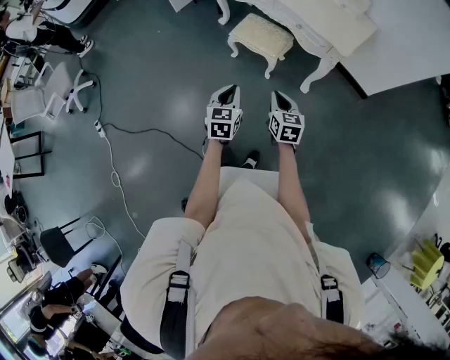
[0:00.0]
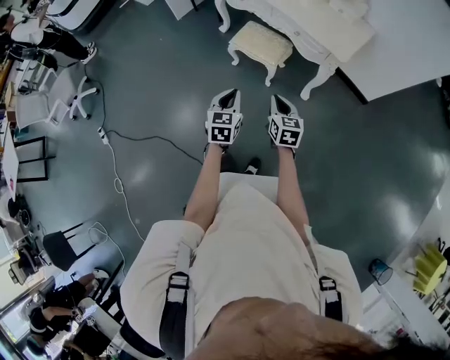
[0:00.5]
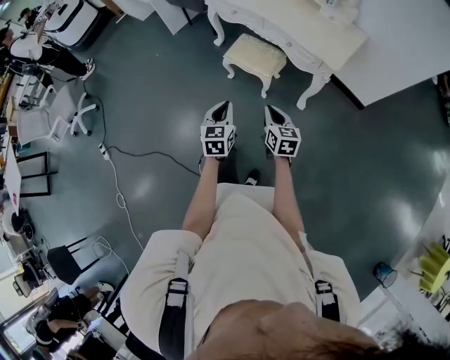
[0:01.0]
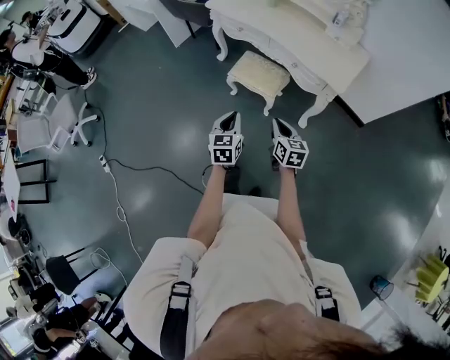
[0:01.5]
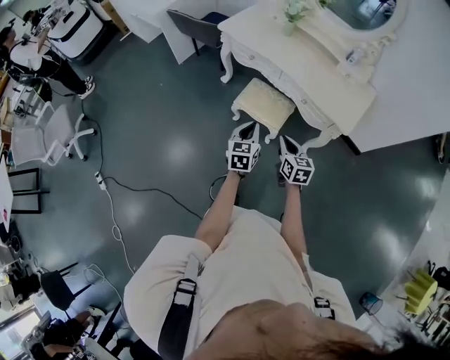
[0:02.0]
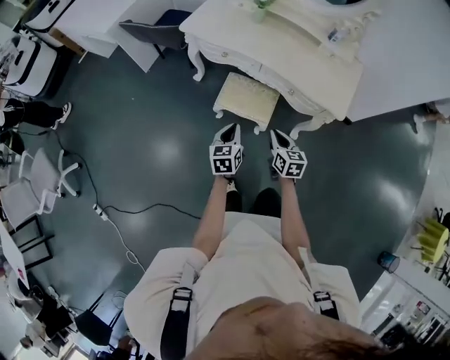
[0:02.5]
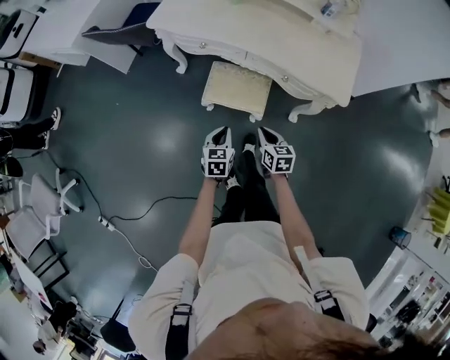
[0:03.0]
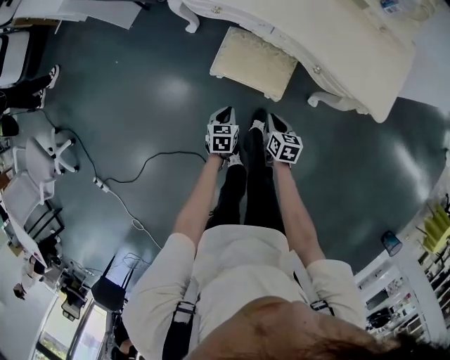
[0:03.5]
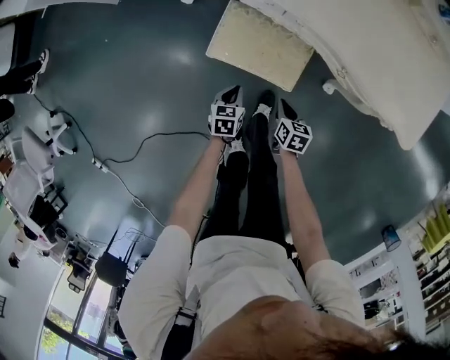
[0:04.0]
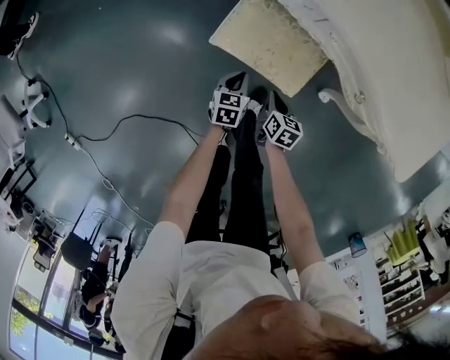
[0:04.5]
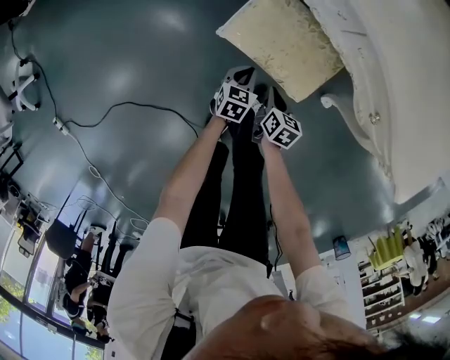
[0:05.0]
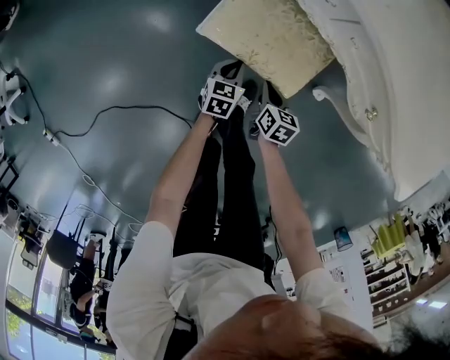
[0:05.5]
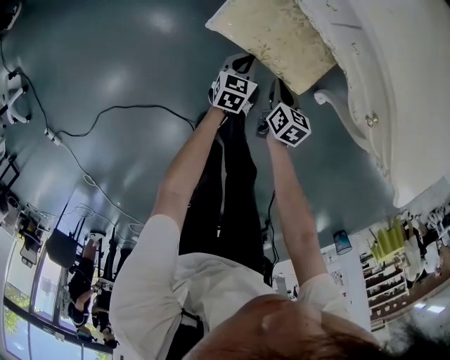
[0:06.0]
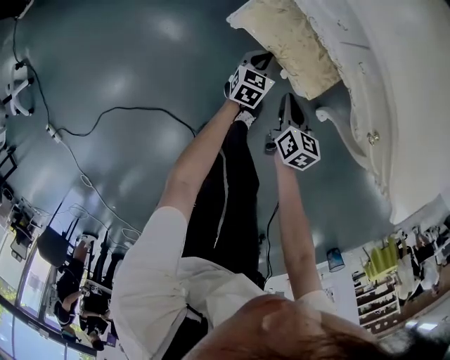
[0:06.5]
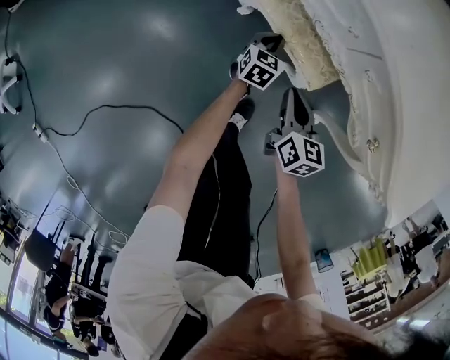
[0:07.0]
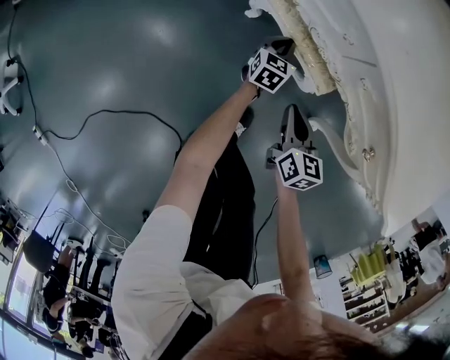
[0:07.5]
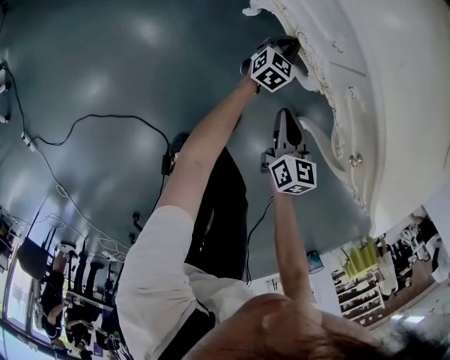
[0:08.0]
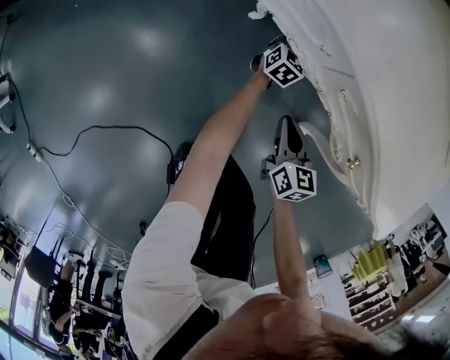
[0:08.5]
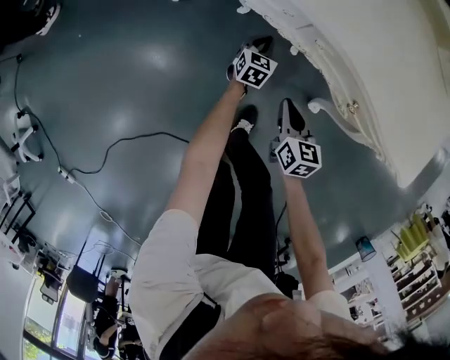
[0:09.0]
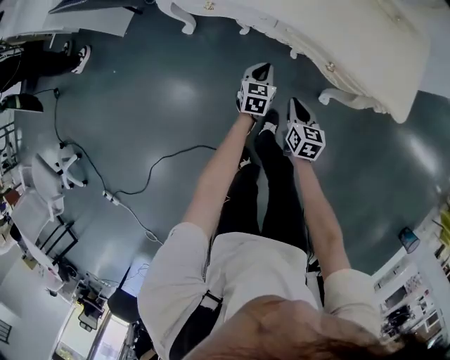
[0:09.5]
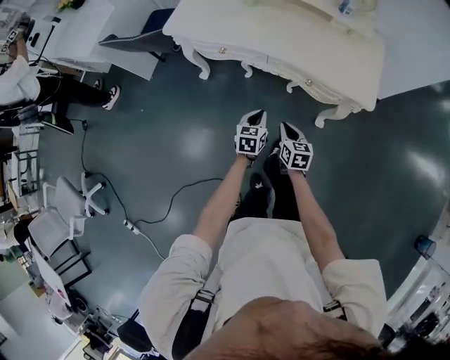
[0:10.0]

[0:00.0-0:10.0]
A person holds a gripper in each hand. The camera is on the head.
0:00.0 to 0:02.0: Both grippers travel together forward, roughly 20 cm.
0:02.0 to 0:04.0: The two grippers go approximately 50 cm downward and forward. The right gripper turns by roughly 30 degrees; the left gripper tilts its fingers some 30 degrees downward.
0:04.0 to 0:06.0: Both grippers travel together downward and forward, about 15 cm.
0:06.0 to 0:08.0: The right gripper heads upward, covering roughly 10 cm, and swivels some 20 degrees; the left gripper is displaced forward and to the right by about 20 cm.
0:08.0 to 0:10.0: The left gripper moves upward and backward, about 50 cm, while the right gripper moves upward and backward, some 30 cm.

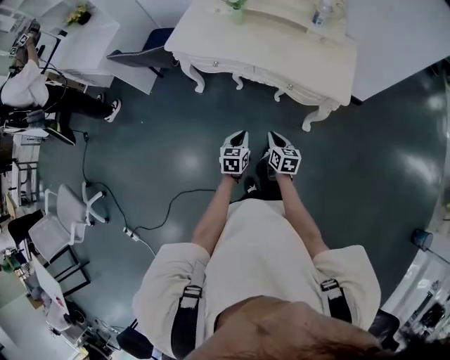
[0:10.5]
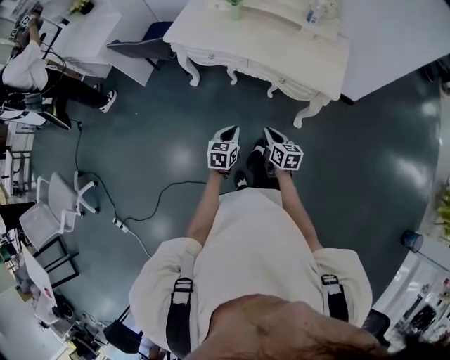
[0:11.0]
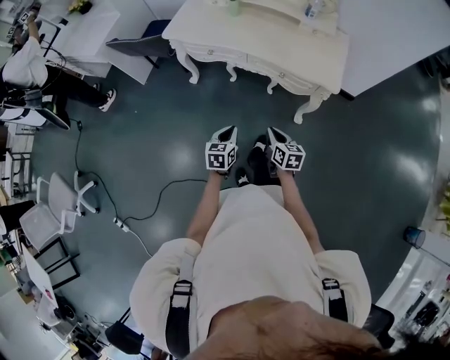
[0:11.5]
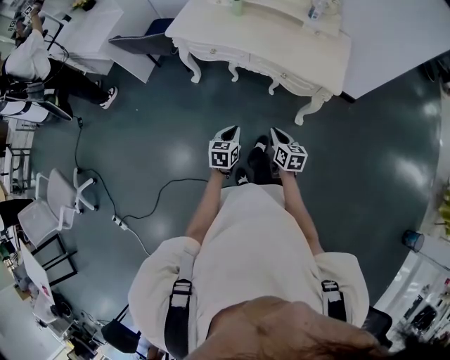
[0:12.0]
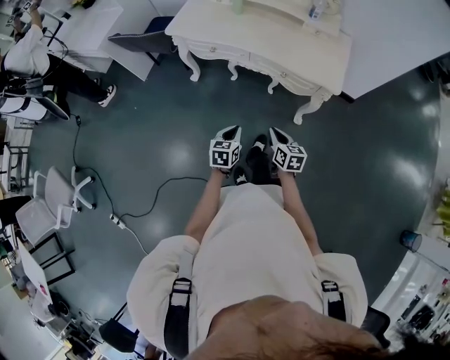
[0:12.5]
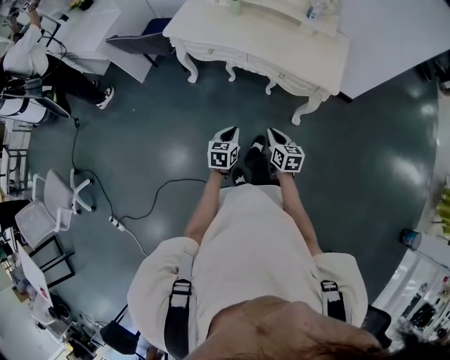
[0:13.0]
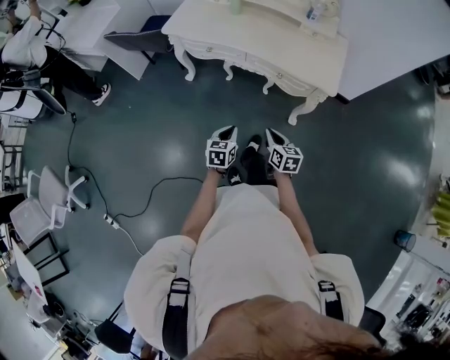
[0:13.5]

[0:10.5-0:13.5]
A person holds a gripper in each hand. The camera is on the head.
0:10.5 to 0:12.0: The grippers both shift backward by roughly 5 cm.
0:12.0 to 0:13.5: Neither gripper changes place.

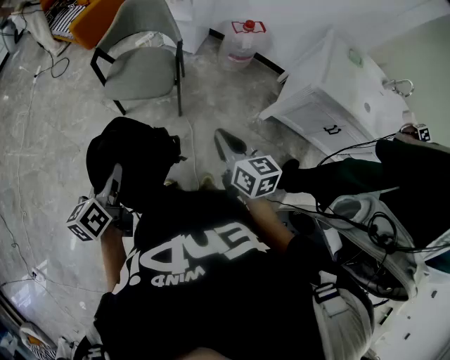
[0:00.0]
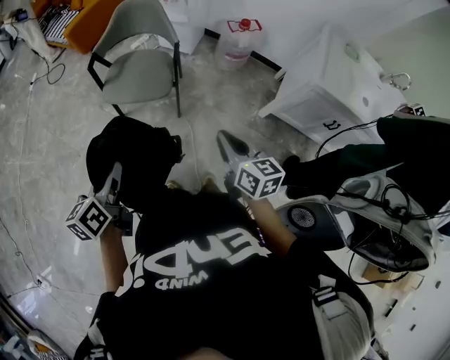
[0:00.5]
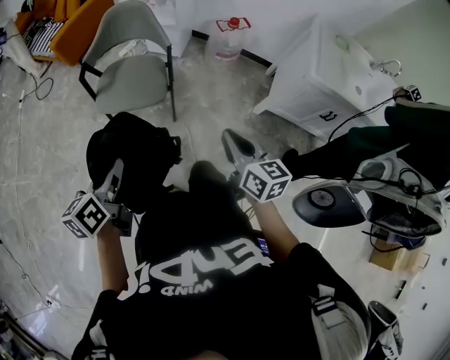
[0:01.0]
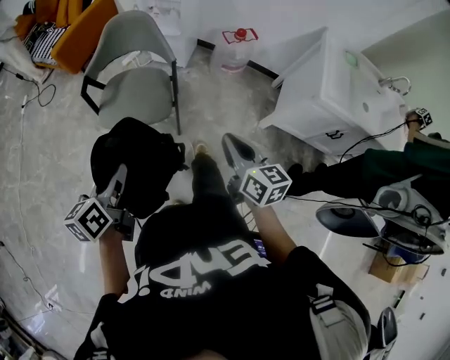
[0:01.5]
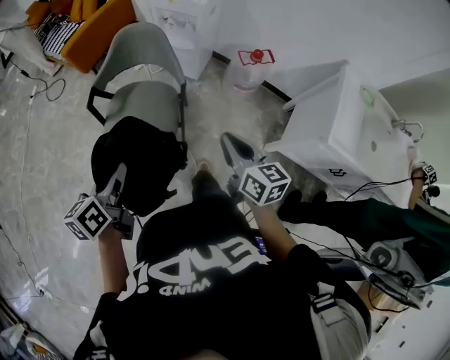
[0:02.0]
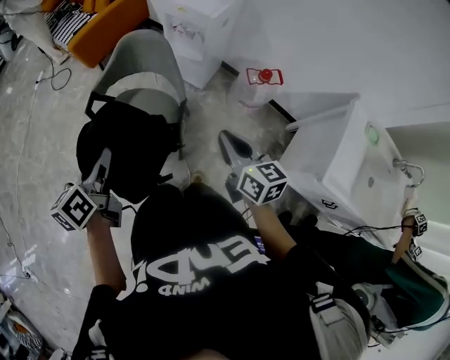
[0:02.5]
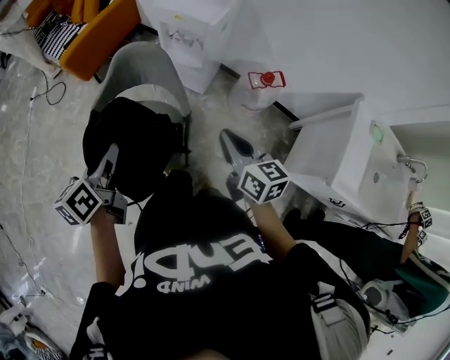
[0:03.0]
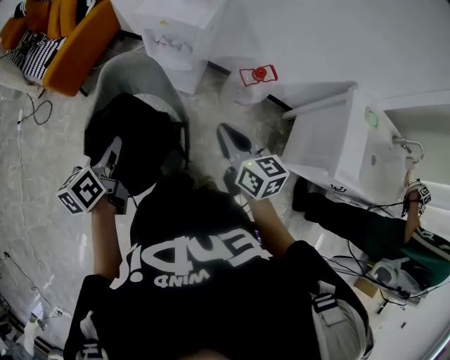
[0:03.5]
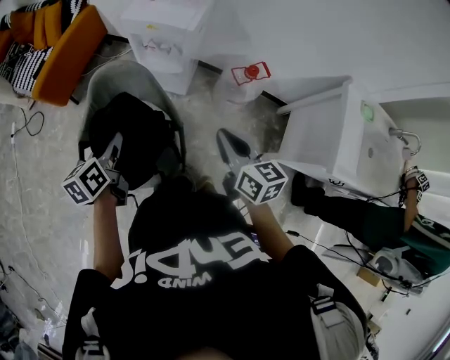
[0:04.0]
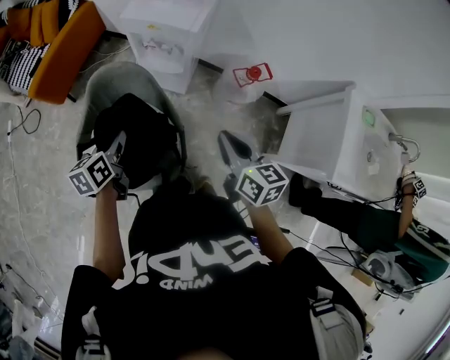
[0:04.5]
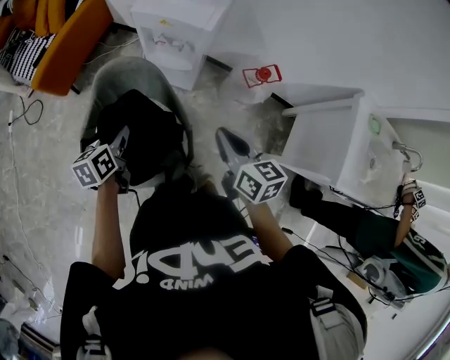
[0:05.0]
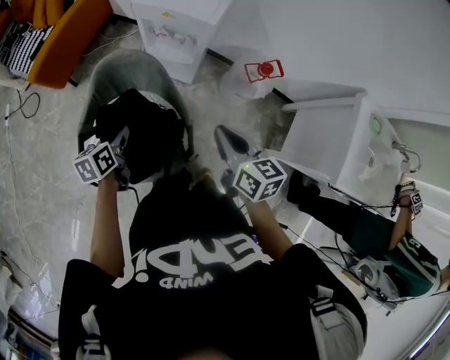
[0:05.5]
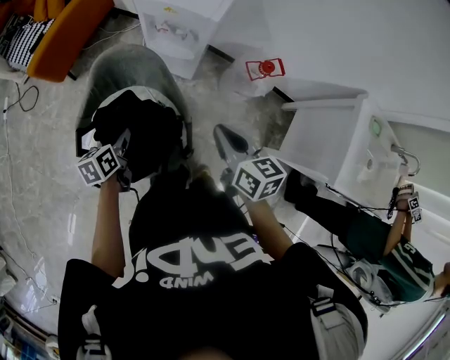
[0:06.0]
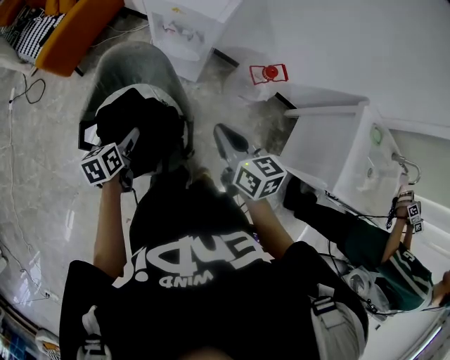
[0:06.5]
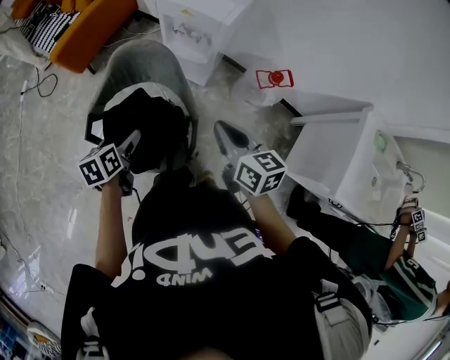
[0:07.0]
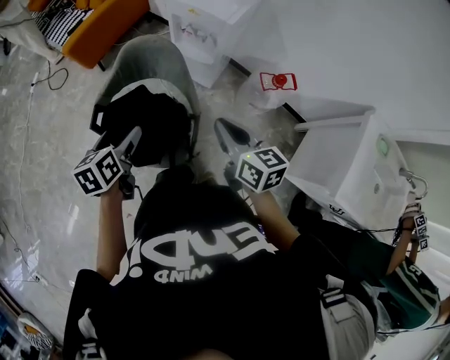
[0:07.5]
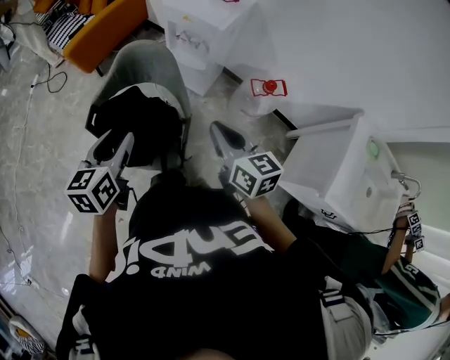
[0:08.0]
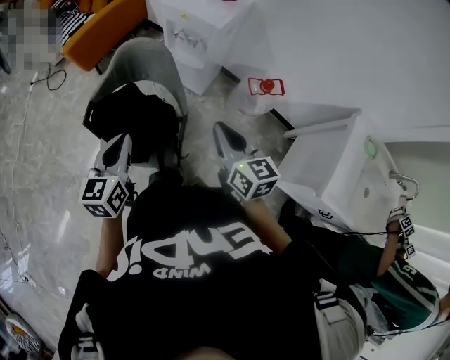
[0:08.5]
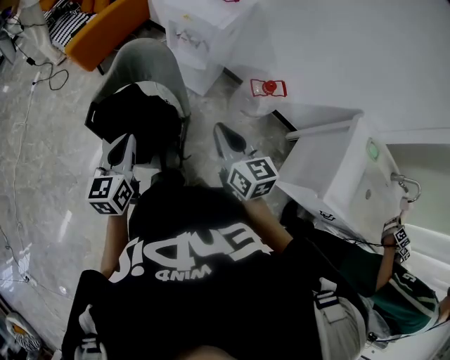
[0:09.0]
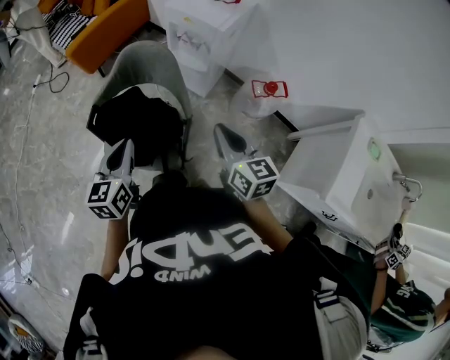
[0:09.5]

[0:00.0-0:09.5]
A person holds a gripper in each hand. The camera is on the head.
0:00.0 to 0:02.0: The grippers both shift forward by about 25 cm.
0:02.0 to 0:04.0: Both grippers move forward, about 30 cm.
0:04.0 to 0:05.5: The right gripper travels forward by about 5 cm, while the left gripper travels downward by roughly 10 cm.
0:05.5 to 0:07.5: The right gripper shifts about 5 cm backward. Meanwhile the left gripper heads backward and upward, covering approximately 15 cm, and opens.
0:07.5 to 0:09.5: The left gripper heads backward, covering about 5 cm, swivels approximately 20 degrees, and closes up.

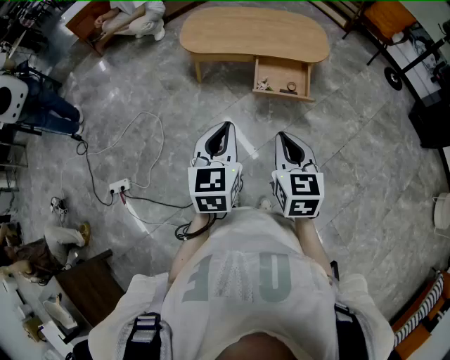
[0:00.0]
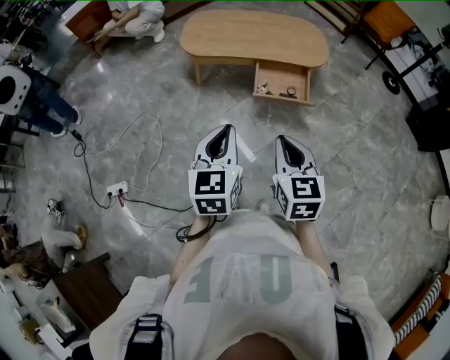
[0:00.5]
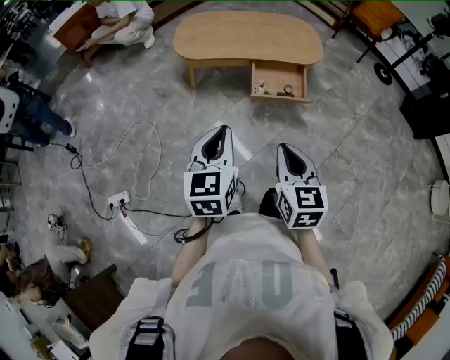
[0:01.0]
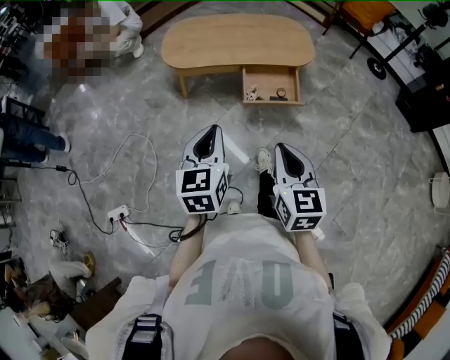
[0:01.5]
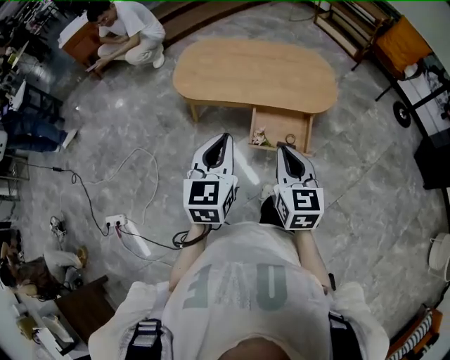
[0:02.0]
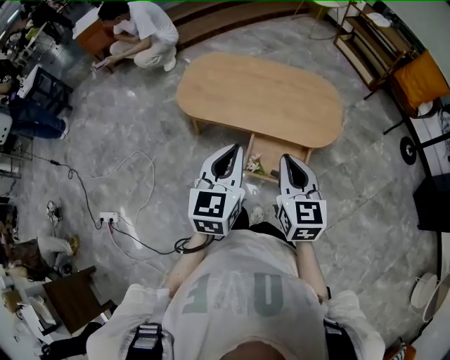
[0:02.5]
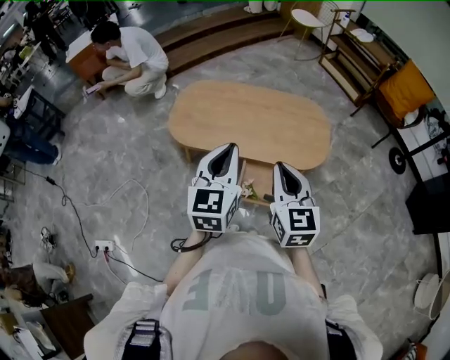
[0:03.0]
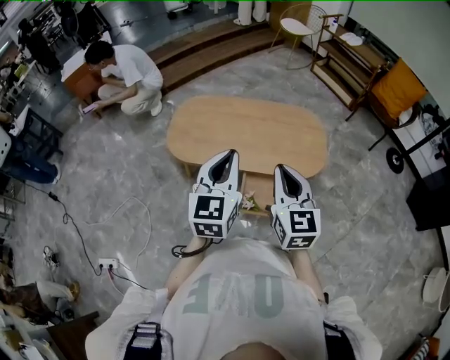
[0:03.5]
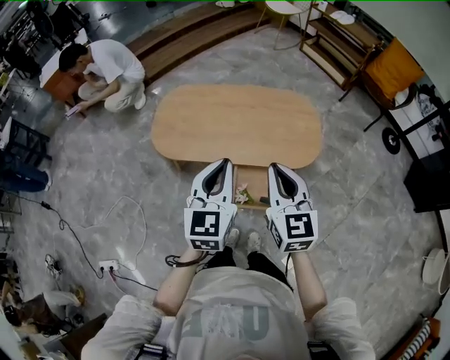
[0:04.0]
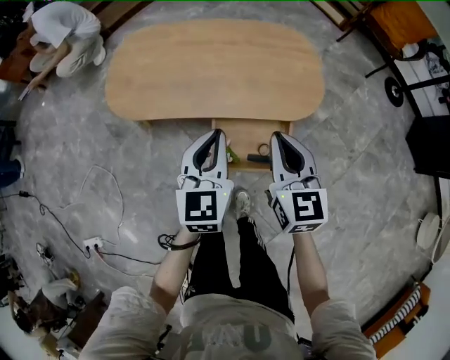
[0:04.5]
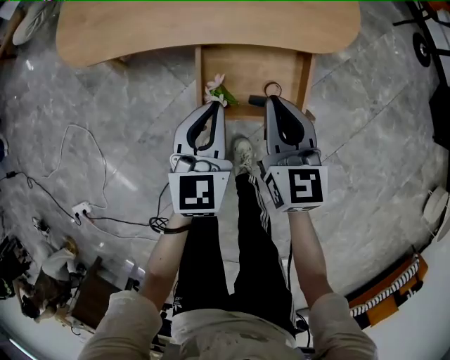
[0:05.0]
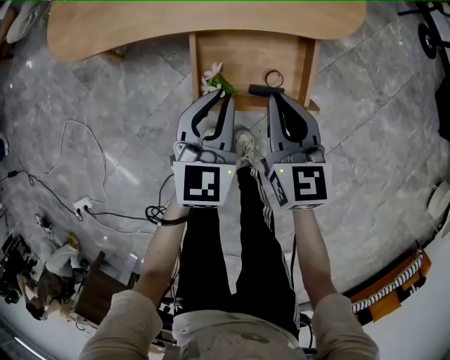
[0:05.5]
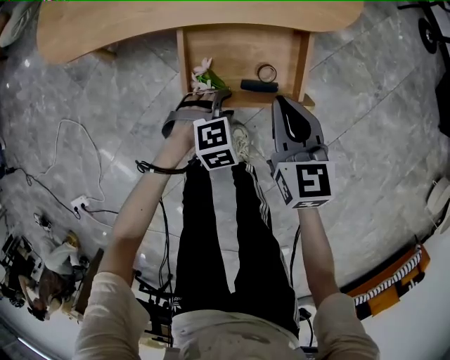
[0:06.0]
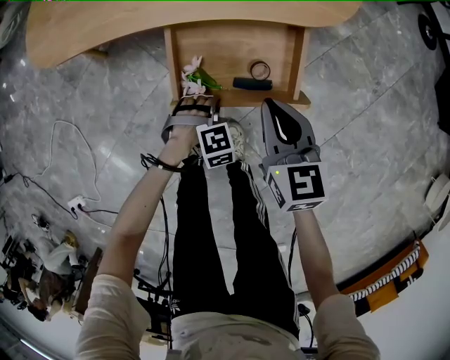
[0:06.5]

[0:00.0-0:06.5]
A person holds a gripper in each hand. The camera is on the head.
0:00.0 to 0:02.0: The grippers both shift forward by some 25 cm.
0:02.0 to 0:04.5: The left gripper shifts some 30 cm forward, downward and to the right, while the right gripper heads forward and downward, covering approximately 25 cm.
0:04.5 to 0:06.5: The right gripper moves downward, roughly 30 cm. Meanwhile the left gripper moves downward, some 50 cm, angles its fingers downward, by about 60 degrees, and opens, then closes again.
